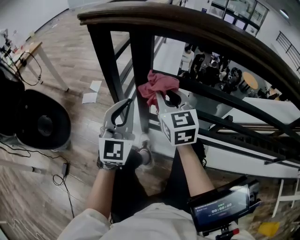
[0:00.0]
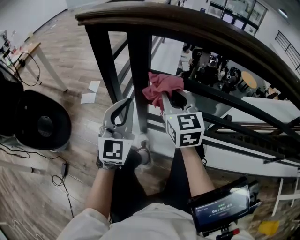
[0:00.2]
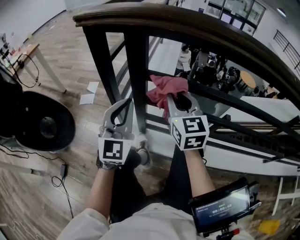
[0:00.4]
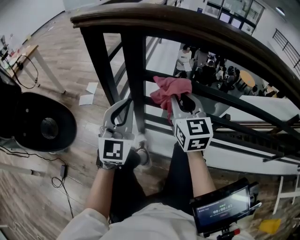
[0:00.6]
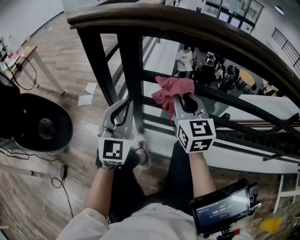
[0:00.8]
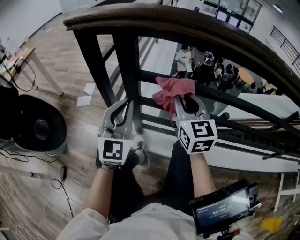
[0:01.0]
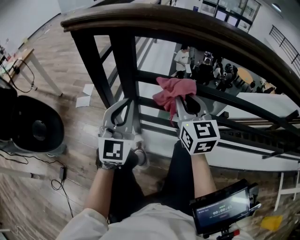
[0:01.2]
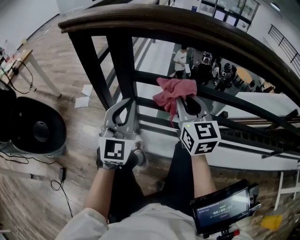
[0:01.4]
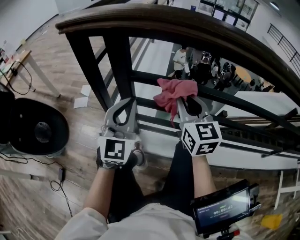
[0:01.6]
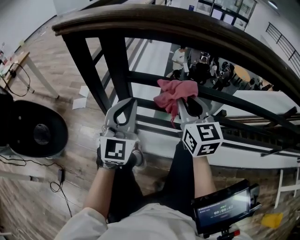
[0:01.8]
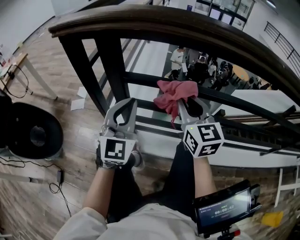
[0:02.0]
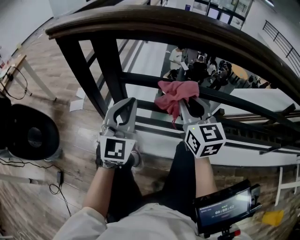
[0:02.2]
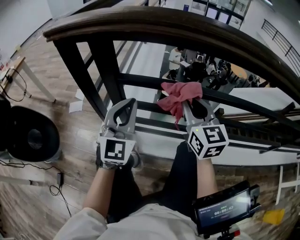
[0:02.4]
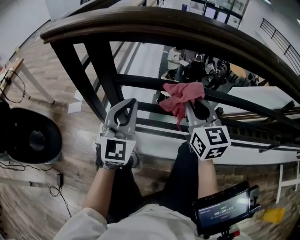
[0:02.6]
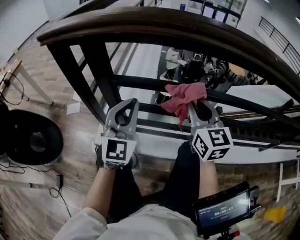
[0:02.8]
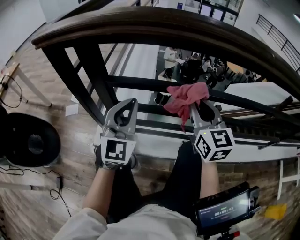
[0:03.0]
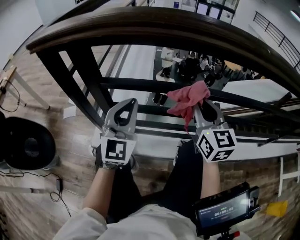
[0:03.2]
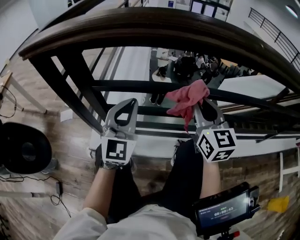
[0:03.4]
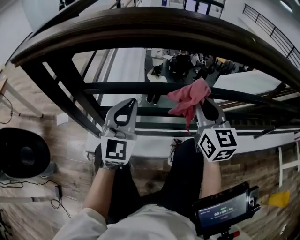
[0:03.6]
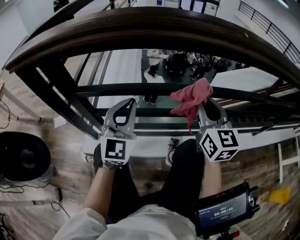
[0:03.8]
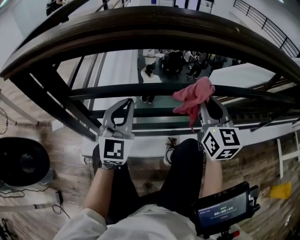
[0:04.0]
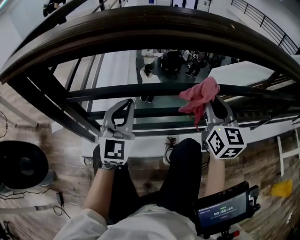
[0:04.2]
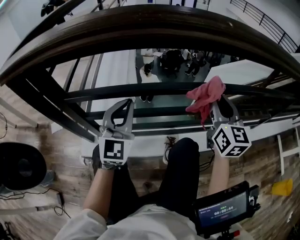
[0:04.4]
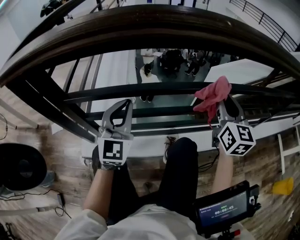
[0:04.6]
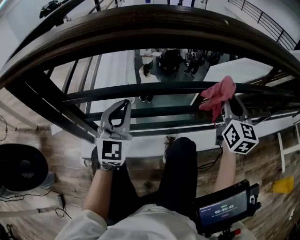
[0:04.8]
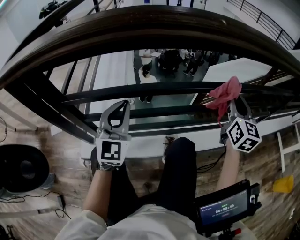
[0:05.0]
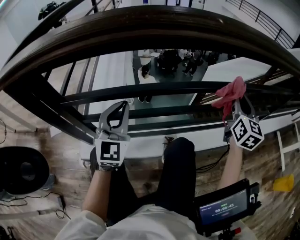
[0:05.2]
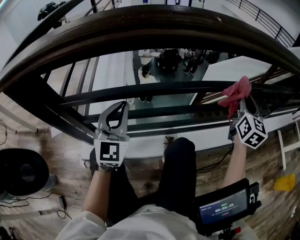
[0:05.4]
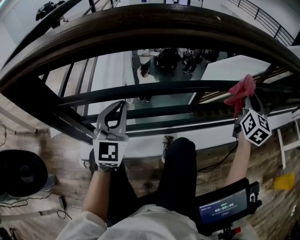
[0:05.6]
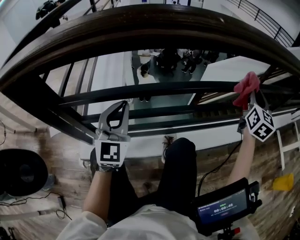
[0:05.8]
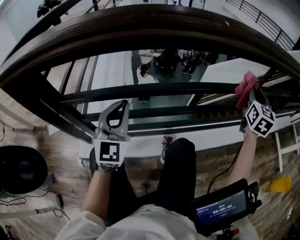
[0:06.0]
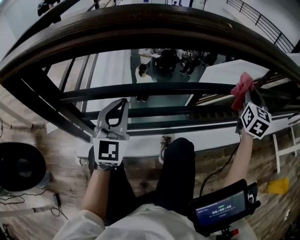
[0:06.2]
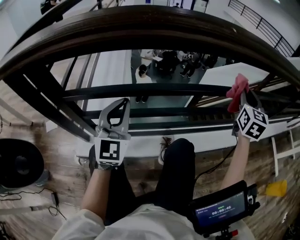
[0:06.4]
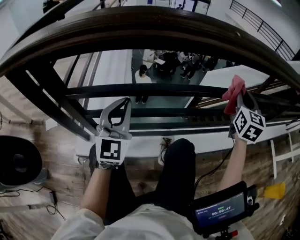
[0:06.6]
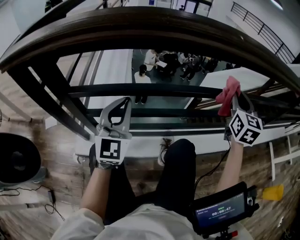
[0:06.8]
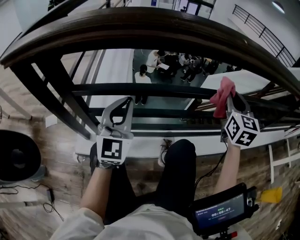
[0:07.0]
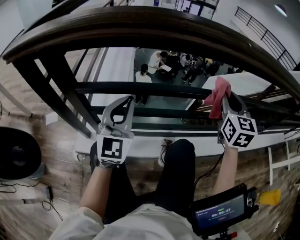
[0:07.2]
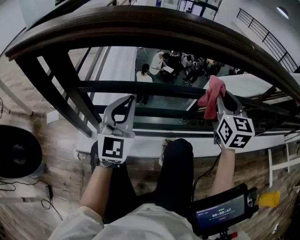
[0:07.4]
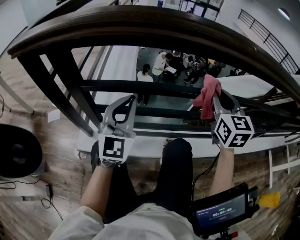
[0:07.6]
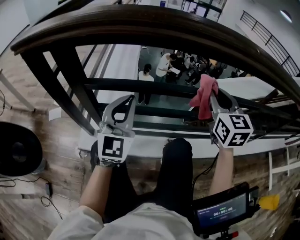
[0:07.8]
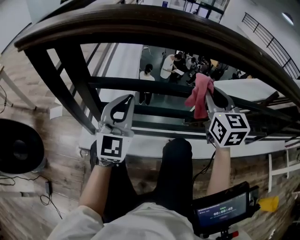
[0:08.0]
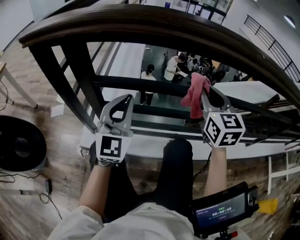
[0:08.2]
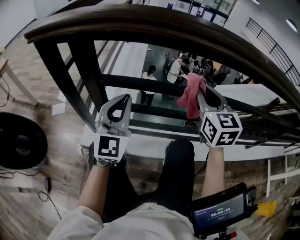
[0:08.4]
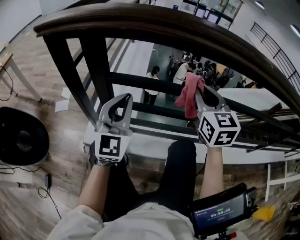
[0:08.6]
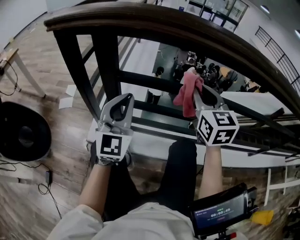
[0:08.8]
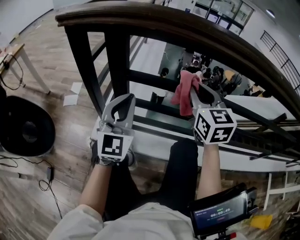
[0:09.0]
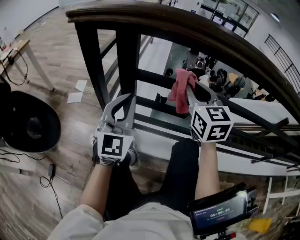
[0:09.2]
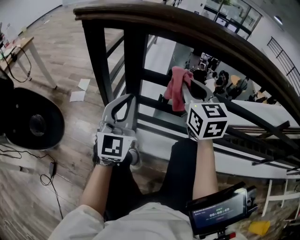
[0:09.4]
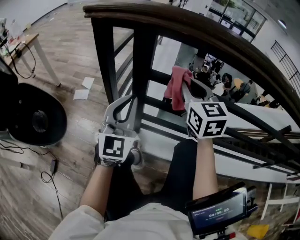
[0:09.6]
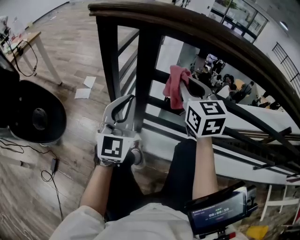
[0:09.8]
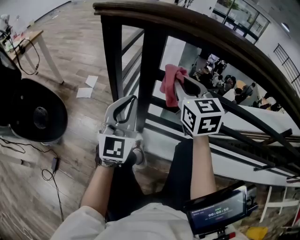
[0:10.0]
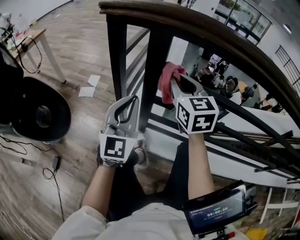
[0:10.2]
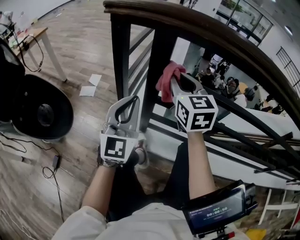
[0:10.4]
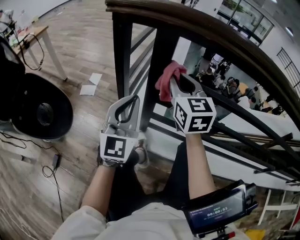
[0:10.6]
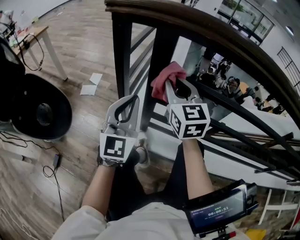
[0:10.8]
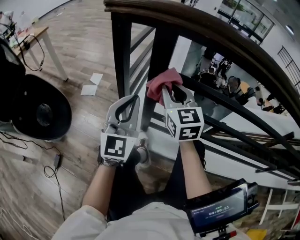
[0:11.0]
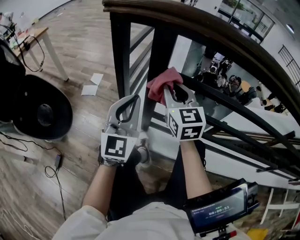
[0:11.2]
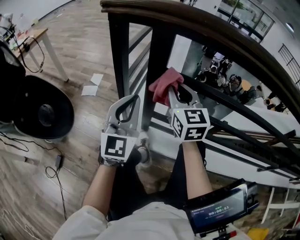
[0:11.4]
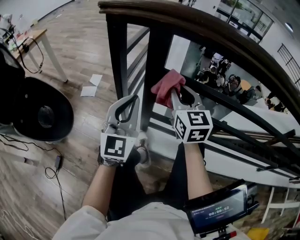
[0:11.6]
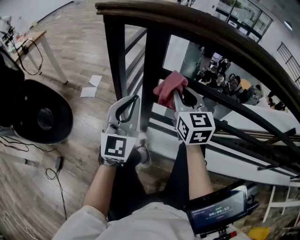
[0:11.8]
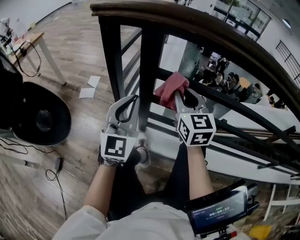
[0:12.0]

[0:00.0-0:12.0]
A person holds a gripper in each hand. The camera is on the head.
0:00.0 to 0:01.6: The left gripper heads to the right, covering some 5 cm, while the right gripper is displaced to the right by approximately 10 cm.
0:01.6 to 0:03.0: The right gripper moves to the right, roughly 10 cm. The left gripper travels to the right by approximately 5 cm.
0:03.0 to 0:04.4: The right gripper travels to the right by some 20 cm, while the left gripper travels to the right and forward by some 10 cm.
0:04.4 to 0:06.0: The right gripper goes approximately 20 cm to the right and forward, and swivels some 30 degrees.
0:06.0 to 0:07.6: The right gripper moves to the left, about 25 cm, and turns by approximately 30 degrees; the left gripper moves approximately 5 cm.
0:07.6 to 0:09.0: The left gripper moves to the left, about 10 cm; the right gripper is displaced to the left by roughly 20 cm.
0:09.0 to 0:10.4: The right gripper heads to the left, covering roughly 20 cm. The left gripper heads to the left, covering roughly 10 cm.
0:10.4 to 0:12.0: The right gripper shifts by approximately 5 cm.

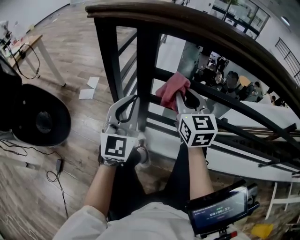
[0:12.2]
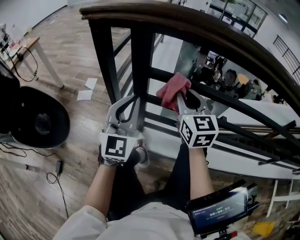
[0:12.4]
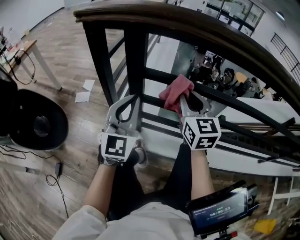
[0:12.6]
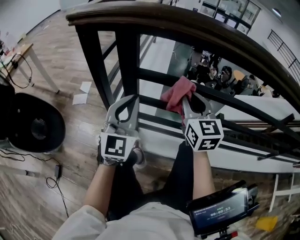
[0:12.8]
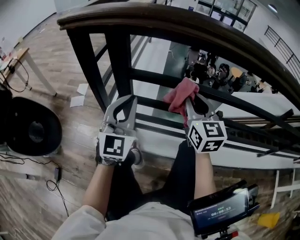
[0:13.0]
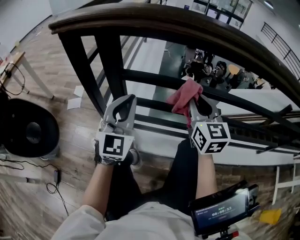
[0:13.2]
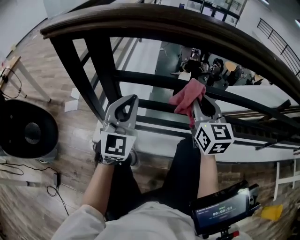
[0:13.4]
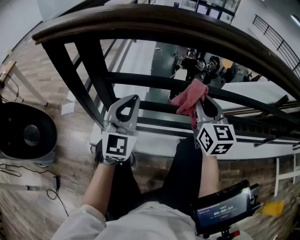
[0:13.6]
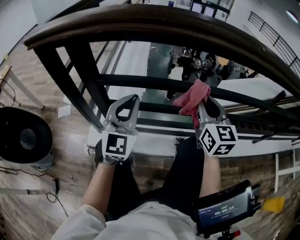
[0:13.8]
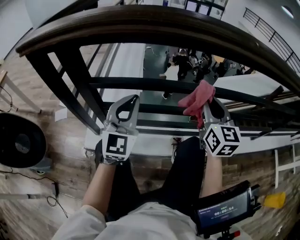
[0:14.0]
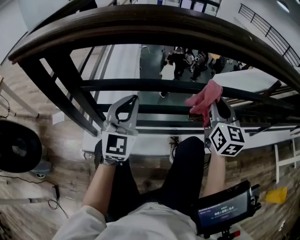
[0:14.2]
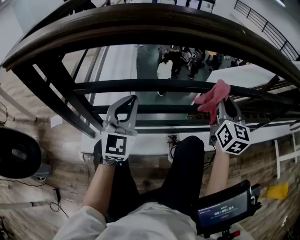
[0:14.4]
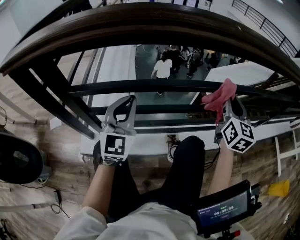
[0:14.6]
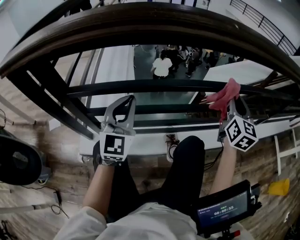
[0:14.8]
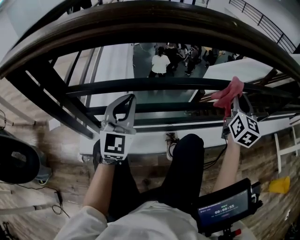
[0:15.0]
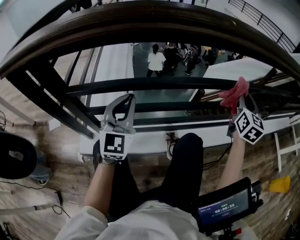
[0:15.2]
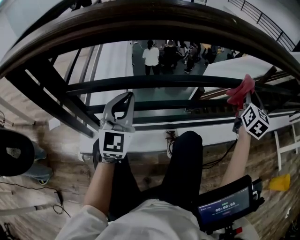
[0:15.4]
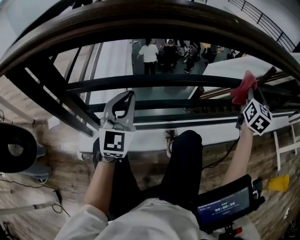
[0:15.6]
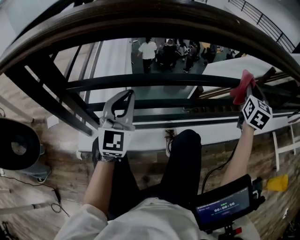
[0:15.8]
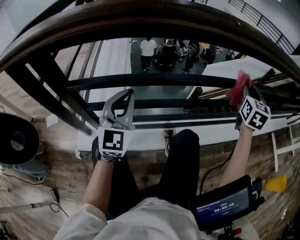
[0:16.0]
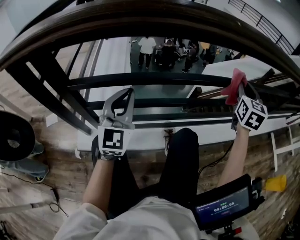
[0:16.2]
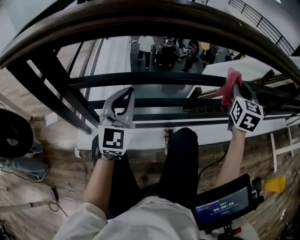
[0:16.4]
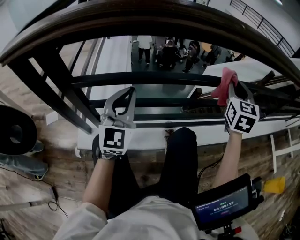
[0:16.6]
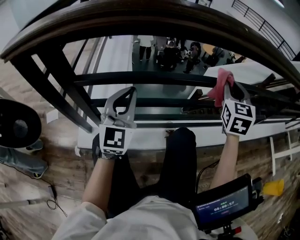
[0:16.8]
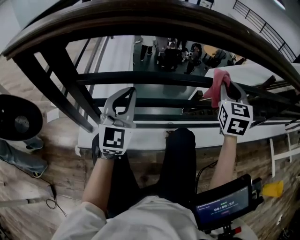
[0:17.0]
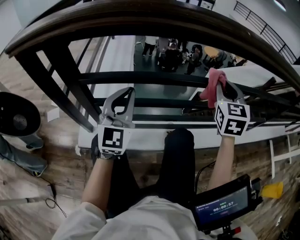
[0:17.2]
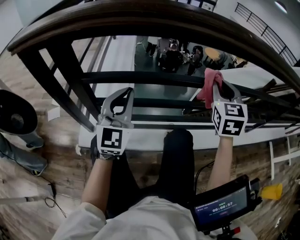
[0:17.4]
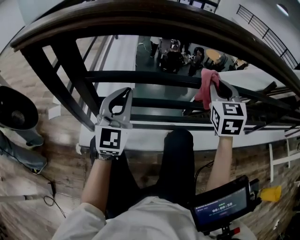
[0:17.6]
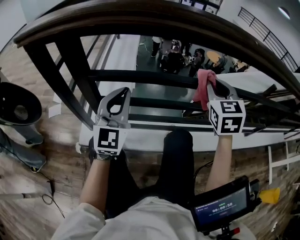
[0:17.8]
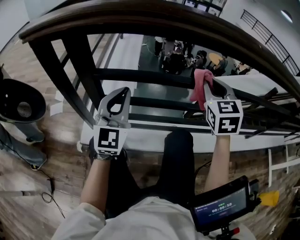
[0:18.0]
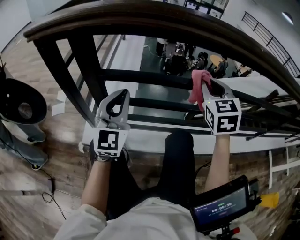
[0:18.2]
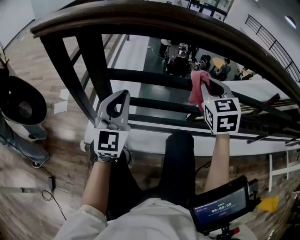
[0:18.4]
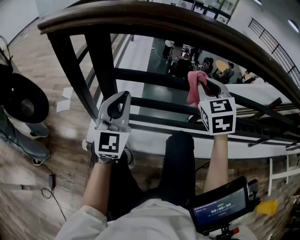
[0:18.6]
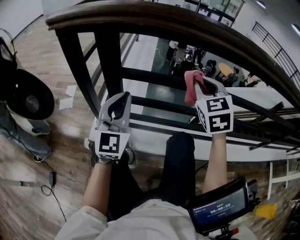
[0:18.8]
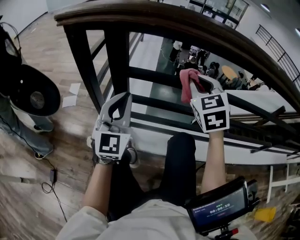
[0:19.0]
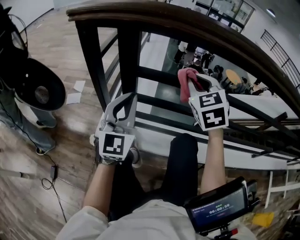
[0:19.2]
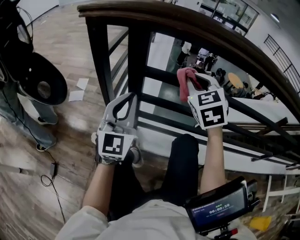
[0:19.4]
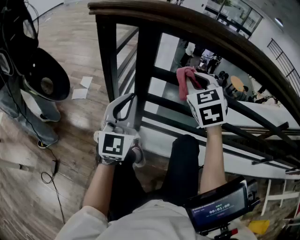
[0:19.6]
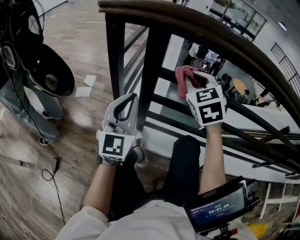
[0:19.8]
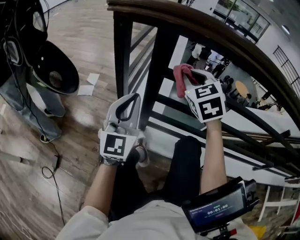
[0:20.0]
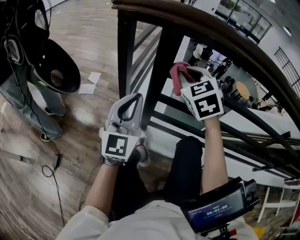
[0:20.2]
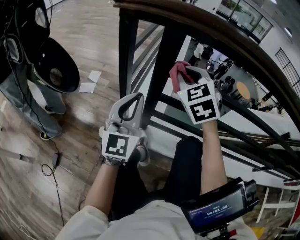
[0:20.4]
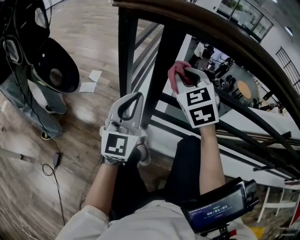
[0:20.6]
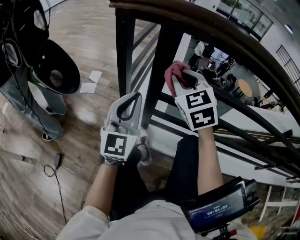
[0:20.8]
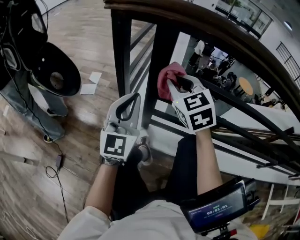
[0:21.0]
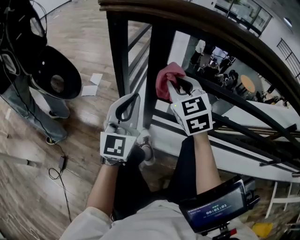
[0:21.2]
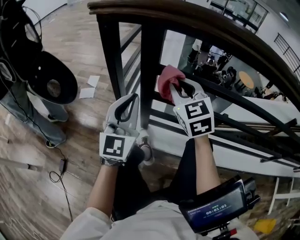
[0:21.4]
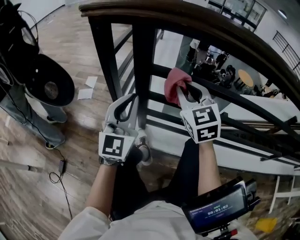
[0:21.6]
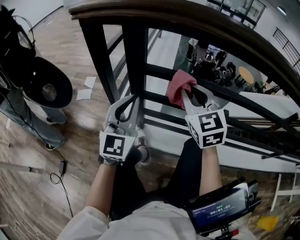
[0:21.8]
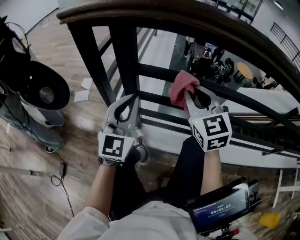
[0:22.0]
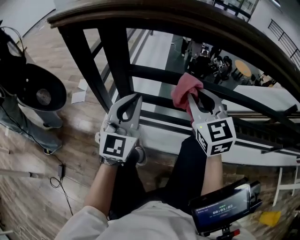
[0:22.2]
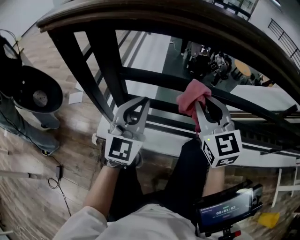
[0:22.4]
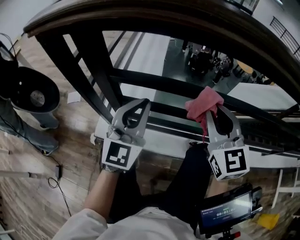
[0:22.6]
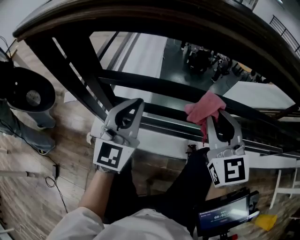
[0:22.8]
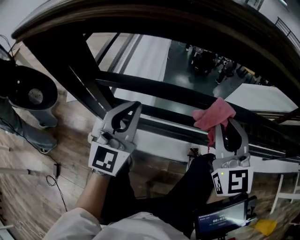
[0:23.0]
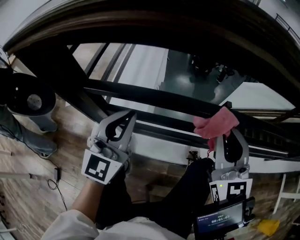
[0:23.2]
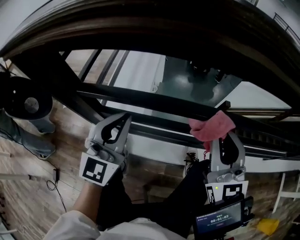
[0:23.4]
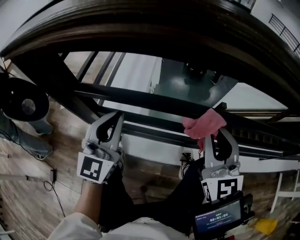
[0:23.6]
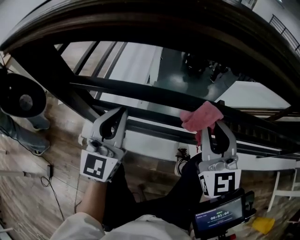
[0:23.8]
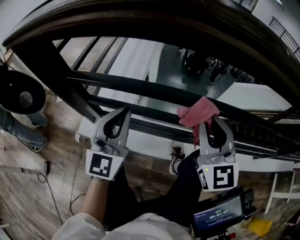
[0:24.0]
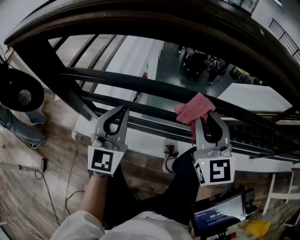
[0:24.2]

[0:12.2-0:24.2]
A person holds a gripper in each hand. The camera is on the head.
0:12.2 to 0:13.8: The right gripper goes roughly 25 cm to the right, while the left gripper moves to the right, some 15 cm.
0:13.8 to 0:15.2: The left gripper moves to the right, some 5 cm; the right gripper travels to the right by about 30 cm, and swivels approximately 30 degrees.
0:15.2 to 0:16.6: The right gripper is displaced to the left by roughly 10 cm.
0:16.6 to 0:18.2: The right gripper goes some 20 cm to the left, and turns by about 20 degrees. The left gripper shifts some 10 cm to the left and backward.
0:18.2 to 0:19.8: The right gripper goes approximately 25 cm to the left, and turns by some 20 degrees; the left gripper heads to the left, covering approximately 15 cm.
0:19.8 to 0:21.2: The right gripper shifts roughly 5 cm to the left.
0:21.2 to 0:22.6: The two grippers go some 20 cm to the right.
0:22.6 to 0:24.2: The grippers both shift to the right by approximately 10 cm.
